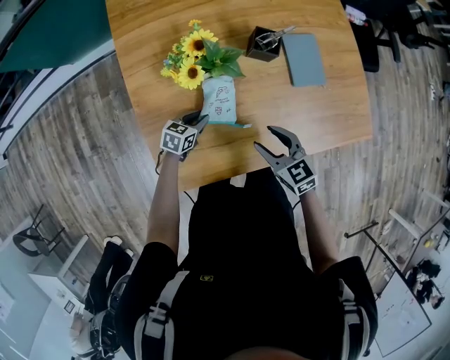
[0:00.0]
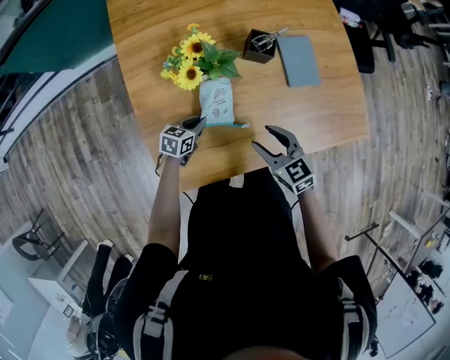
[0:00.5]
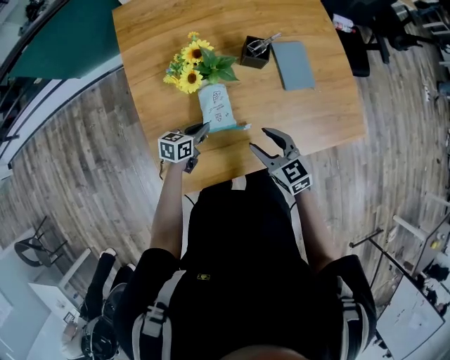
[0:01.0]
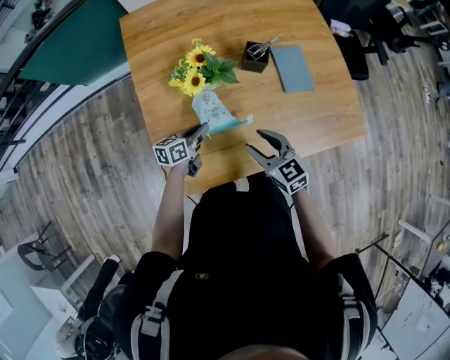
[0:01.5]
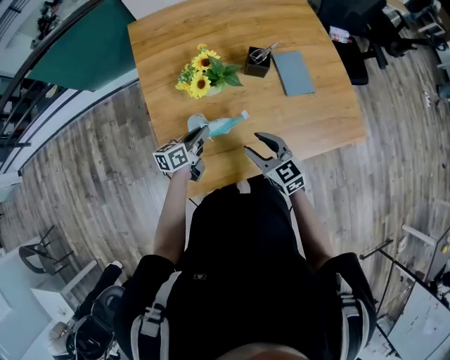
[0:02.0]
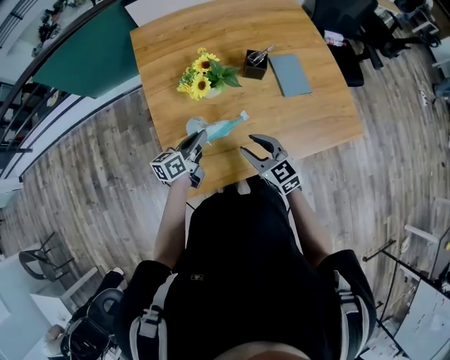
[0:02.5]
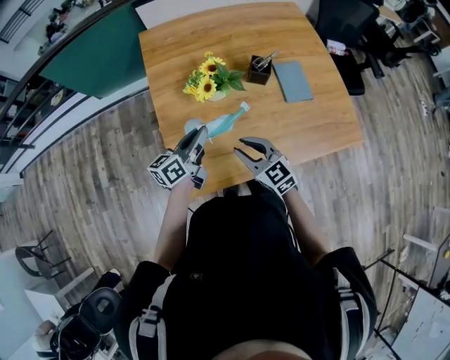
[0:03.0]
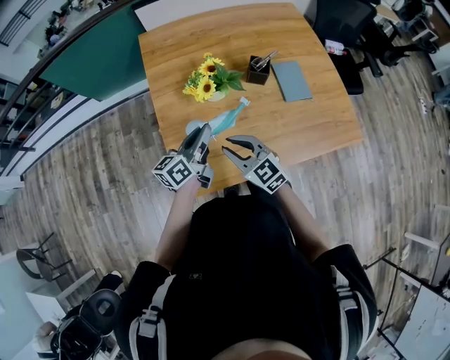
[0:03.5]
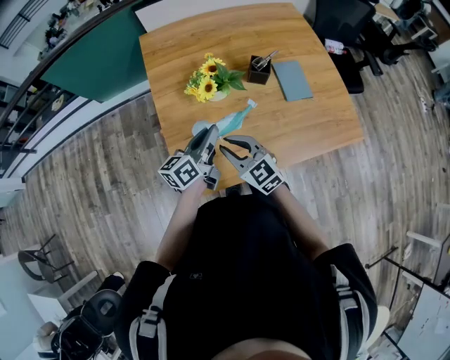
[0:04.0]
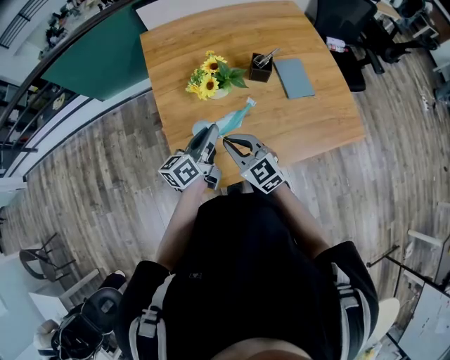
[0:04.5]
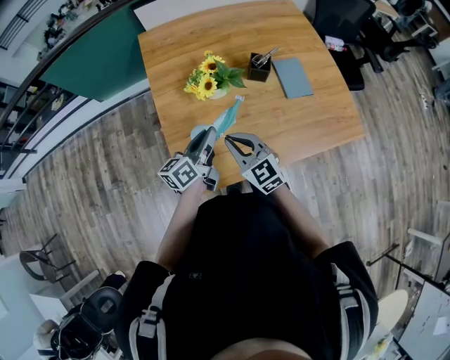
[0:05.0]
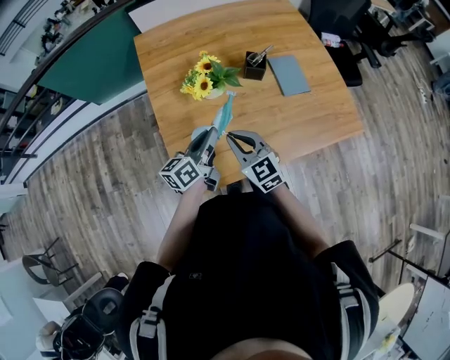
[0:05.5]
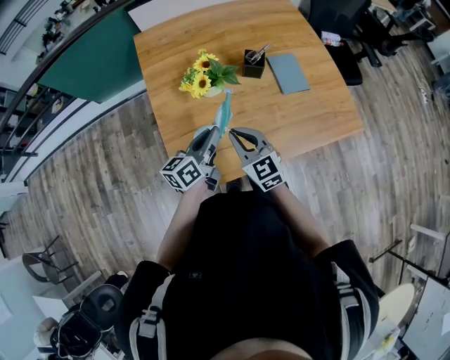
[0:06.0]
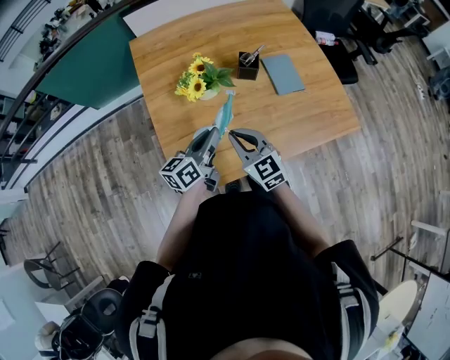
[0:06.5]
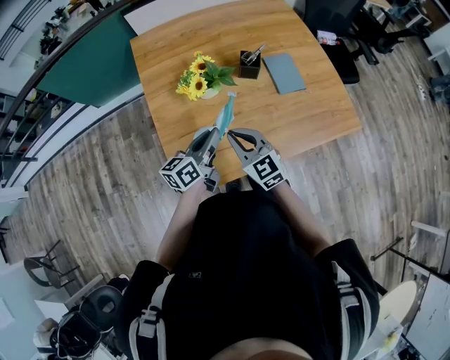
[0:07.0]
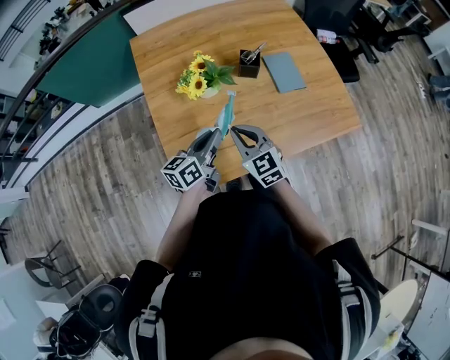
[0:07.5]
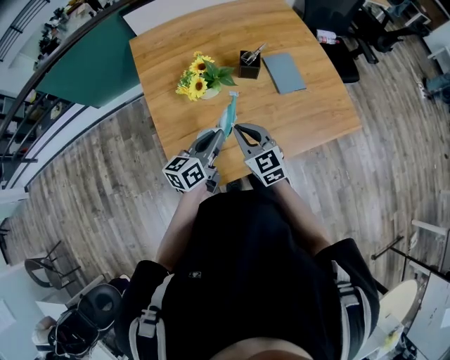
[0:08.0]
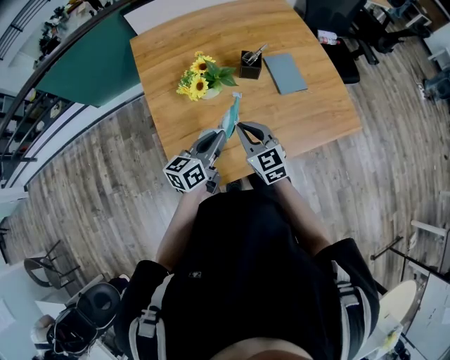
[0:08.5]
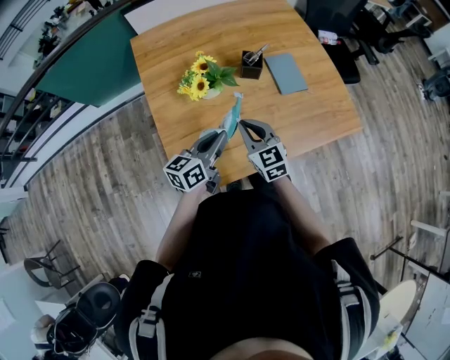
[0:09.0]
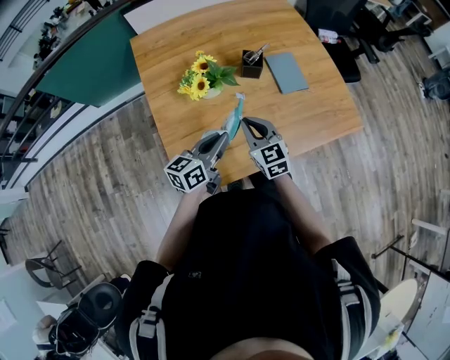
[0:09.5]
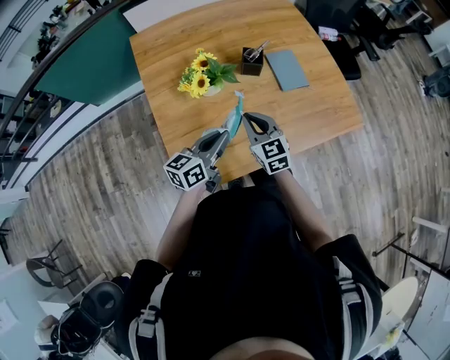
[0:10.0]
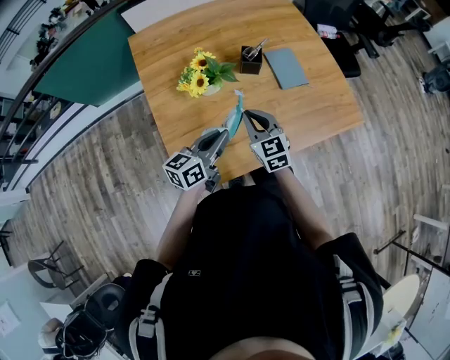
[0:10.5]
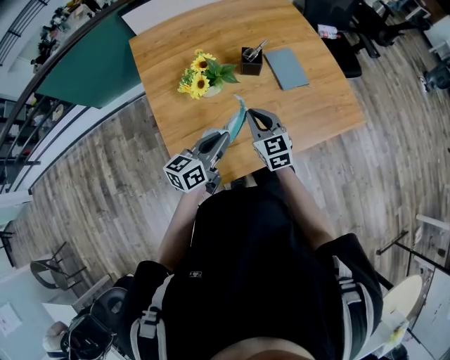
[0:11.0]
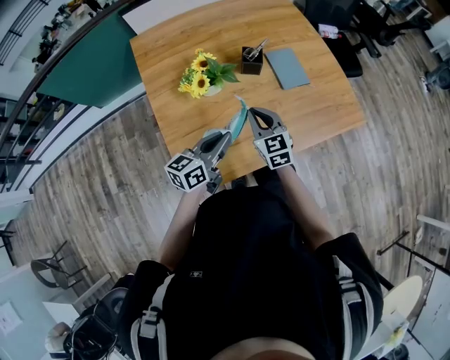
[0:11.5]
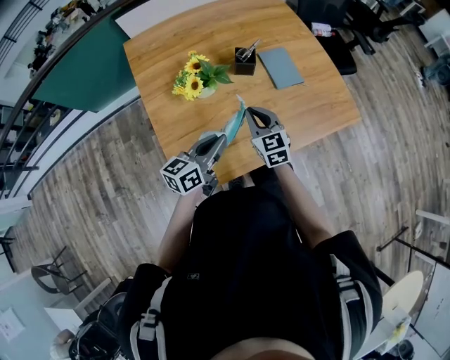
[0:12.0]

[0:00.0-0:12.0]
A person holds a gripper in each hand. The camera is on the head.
0:00.0 to 0:02.0: The right gripper heads upward, covering approximately 5 cm. The left gripper goes approximately 15 cm upward, changes its angle by some 40 degrees, and closes up.
0:02.0 to 0:04.0: The left gripper shifts approximately 15 cm upward. The right gripper heads to the left, covering approximately 10 cm, and closes its fingers.
0:04.0 to 0:06.0: The right gripper moves some 5 cm.
0:06.0 to 0:08.0: The grippers make only small movements.
0:08.0 to 0:10.0: The grippers make only small movements.
0:10.0 to 0:12.0: There are only small adjustments of the grippers.

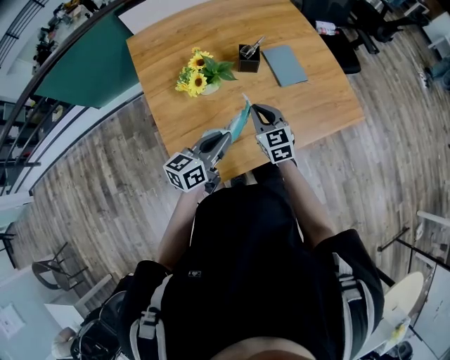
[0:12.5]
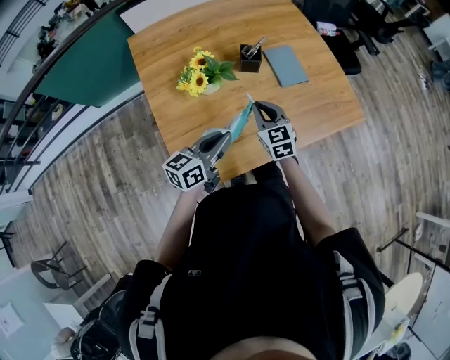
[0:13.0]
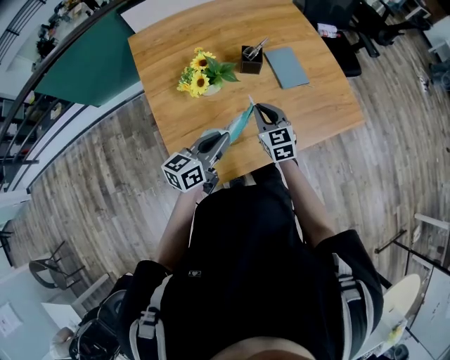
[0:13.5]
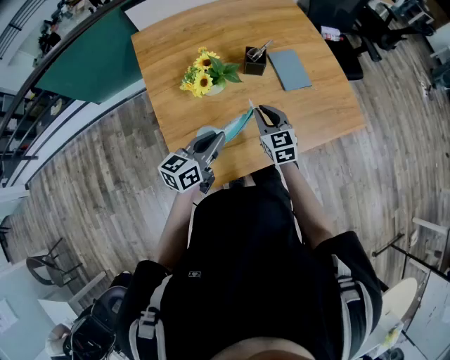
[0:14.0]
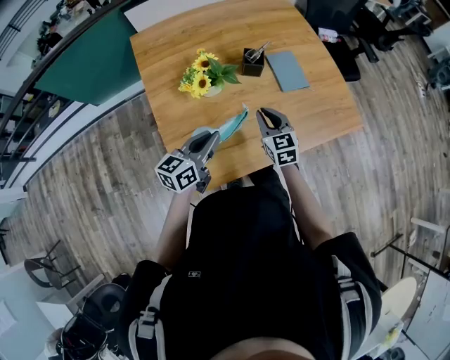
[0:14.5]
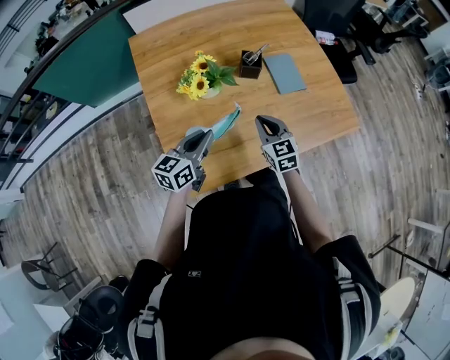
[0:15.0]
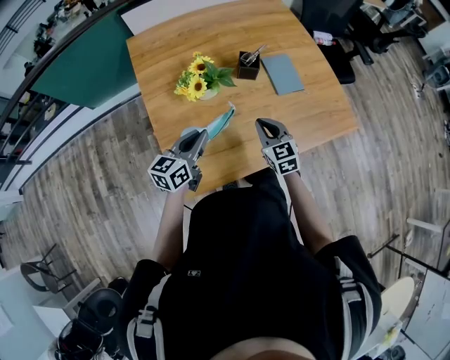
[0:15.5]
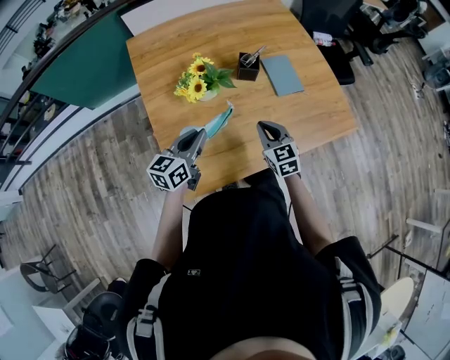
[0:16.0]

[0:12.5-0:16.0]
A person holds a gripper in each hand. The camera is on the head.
0:12.5 to 0:14.5: The grippers make only small movements.
0:14.5 to 0:16.0: There are only small adjustments of the grippers.

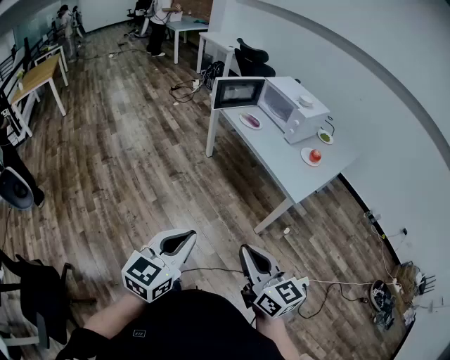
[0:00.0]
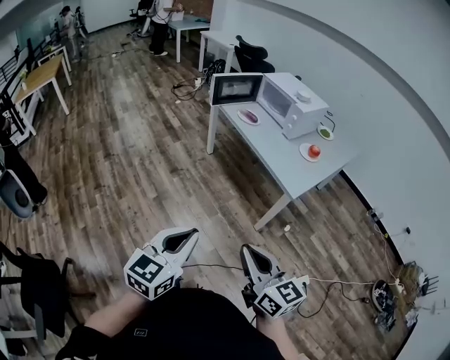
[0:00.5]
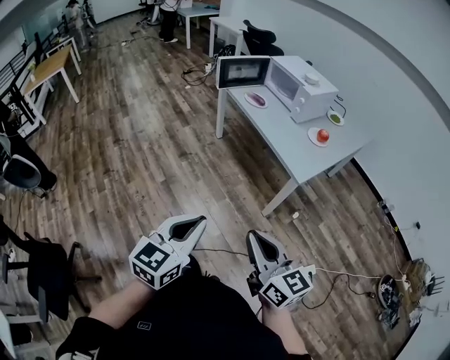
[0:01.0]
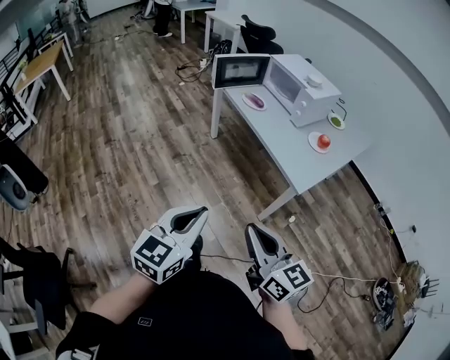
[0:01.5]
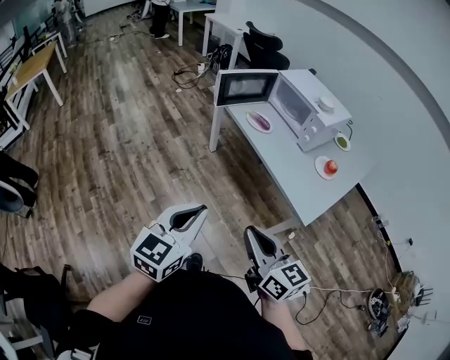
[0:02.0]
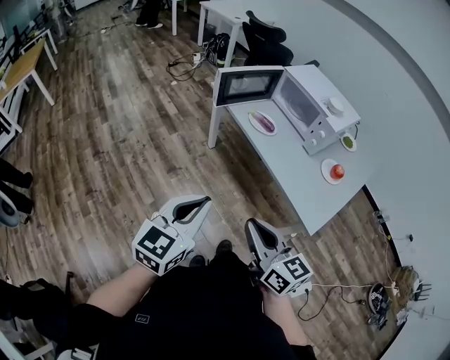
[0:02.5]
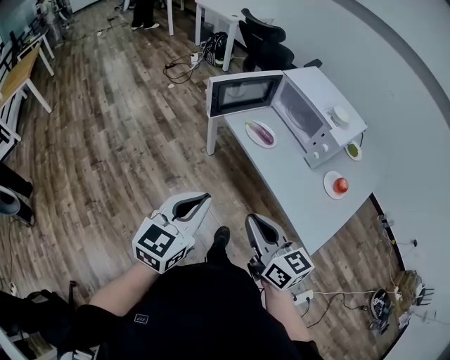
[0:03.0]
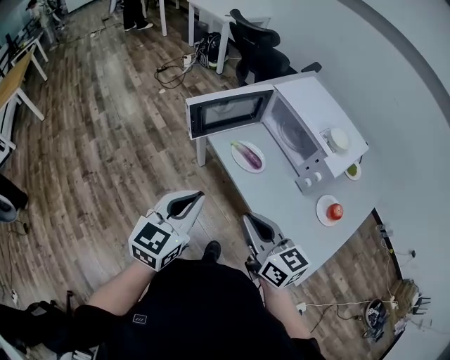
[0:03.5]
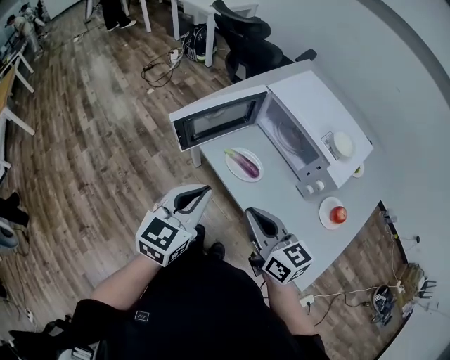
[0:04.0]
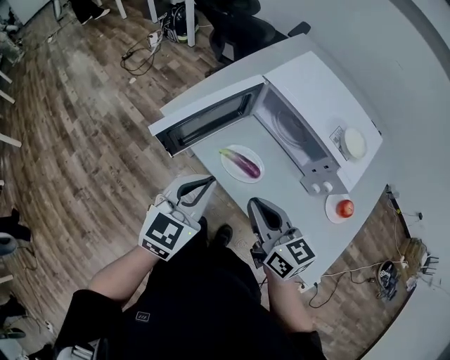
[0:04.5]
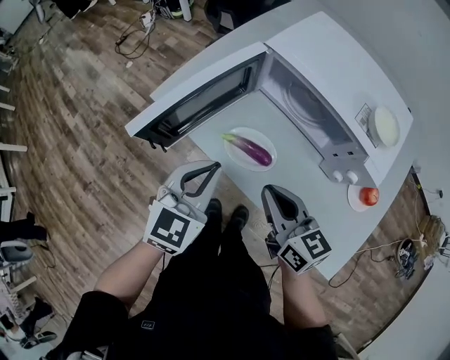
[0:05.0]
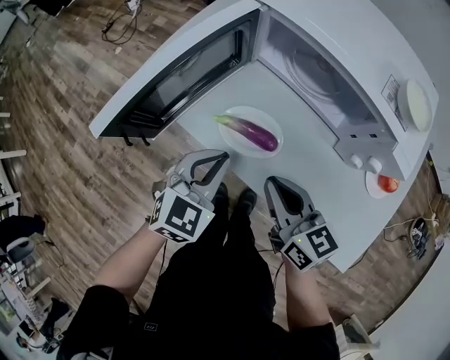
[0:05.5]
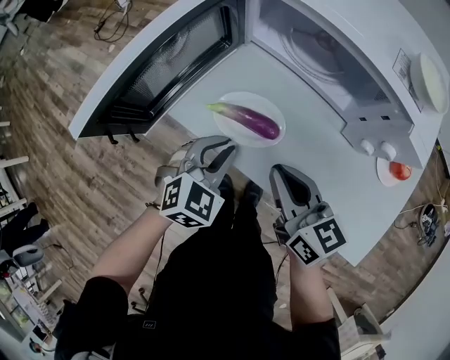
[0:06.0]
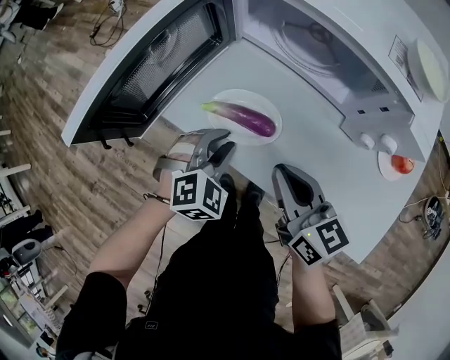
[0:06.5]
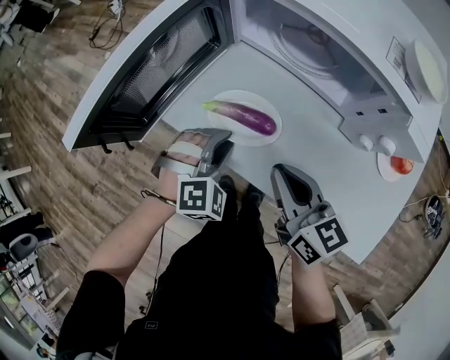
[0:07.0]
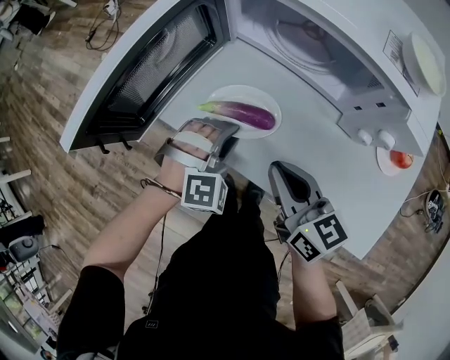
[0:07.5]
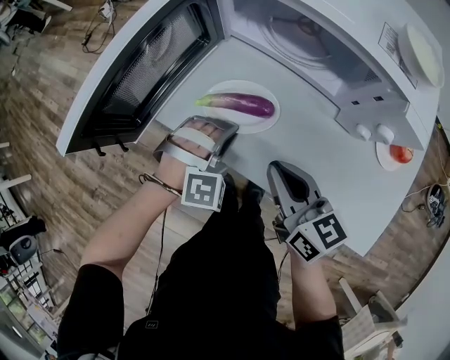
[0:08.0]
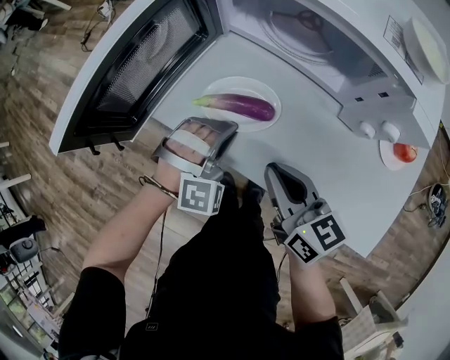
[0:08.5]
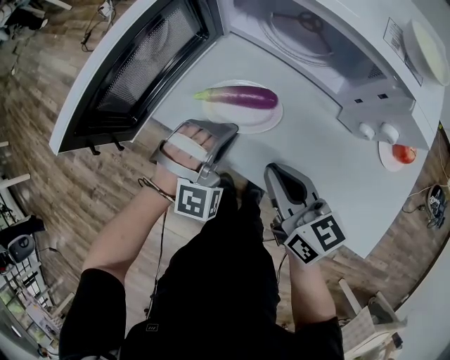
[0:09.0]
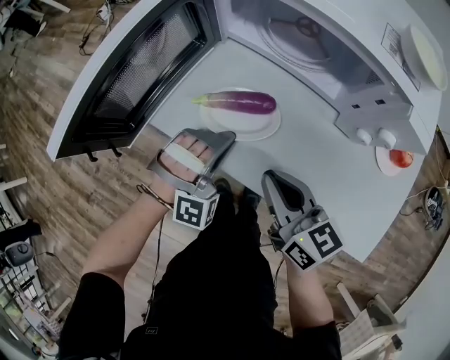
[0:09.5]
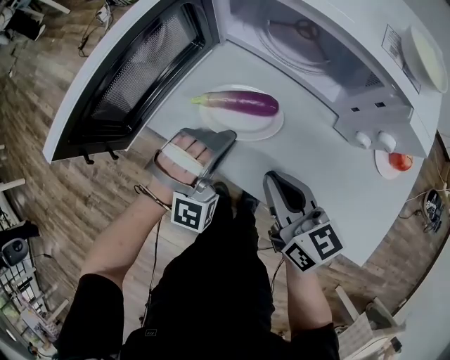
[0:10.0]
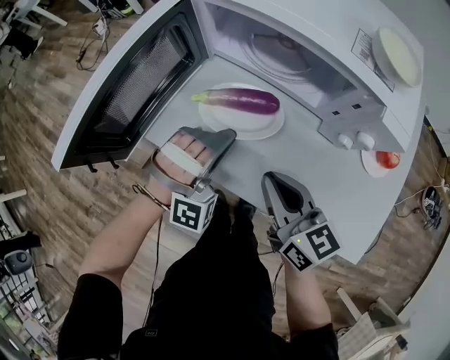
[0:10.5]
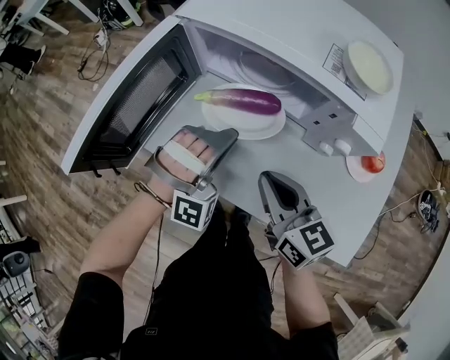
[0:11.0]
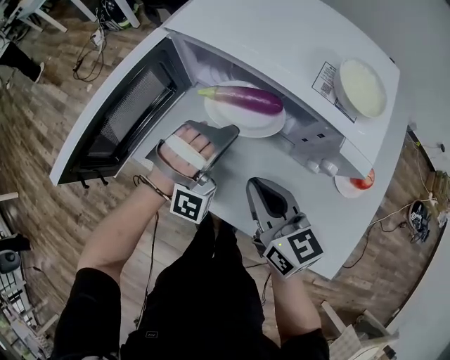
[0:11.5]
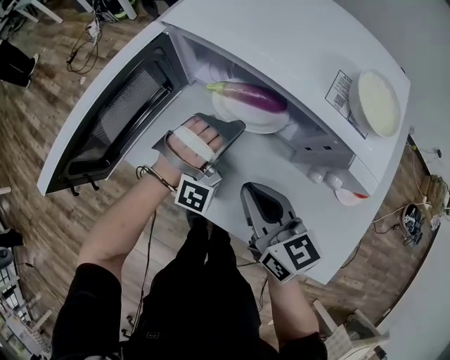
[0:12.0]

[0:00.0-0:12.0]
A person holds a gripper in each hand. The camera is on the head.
0:00.0 to 0:02.0: The grippers both shift forward by roughly 25 cm.
0:02.0 to 0:04.0: The pair of grippers is taken forward, about 50 cm.
0:04.0 to 0:06.0: The grippers both shift downward and forward by about 25 cm. The left gripper swivels approximately 40 degrees.
0:06.0 to 0:08.0: The left gripper shifts by about 5 cm, and rolls clockwise, seen from behind, by approximately 50 degrees.
0:08.0 to 0:10.0: The left gripper rotates about 30 degrees.
0:10.0 to 0:12.0: The right gripper goes some 5 cm forward. Meanwhile the left gripper shifts about 15 cm forward and to the right.
